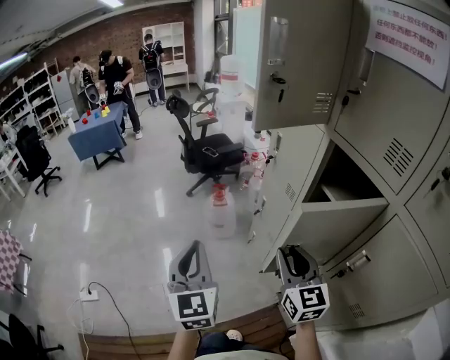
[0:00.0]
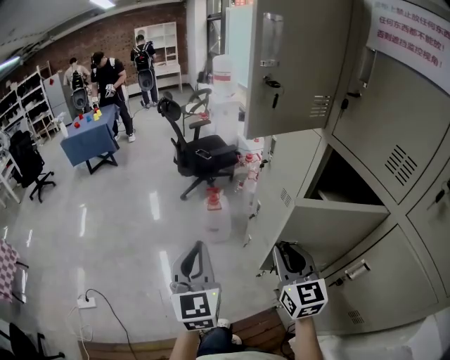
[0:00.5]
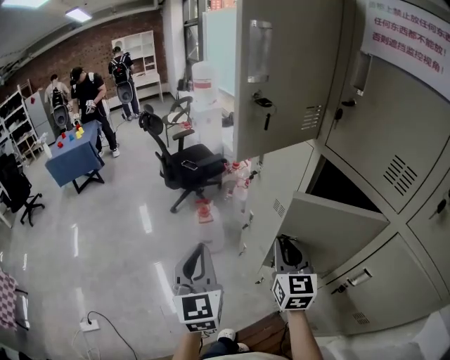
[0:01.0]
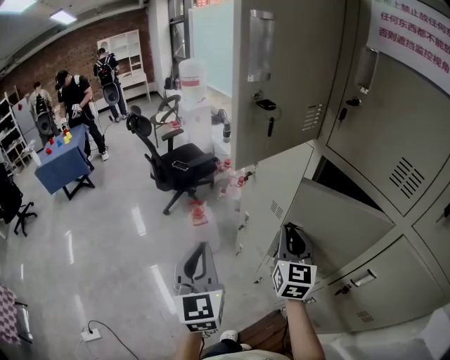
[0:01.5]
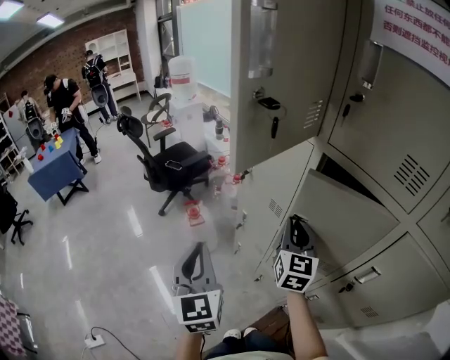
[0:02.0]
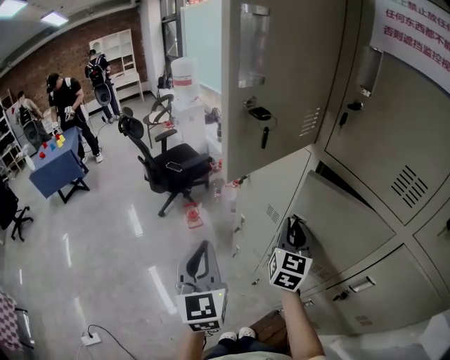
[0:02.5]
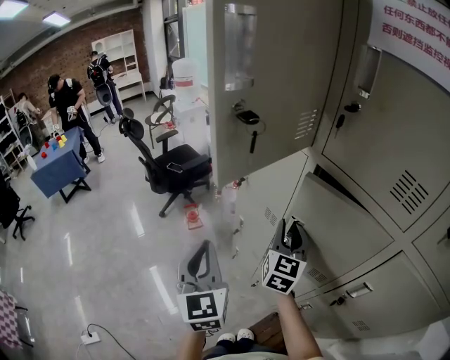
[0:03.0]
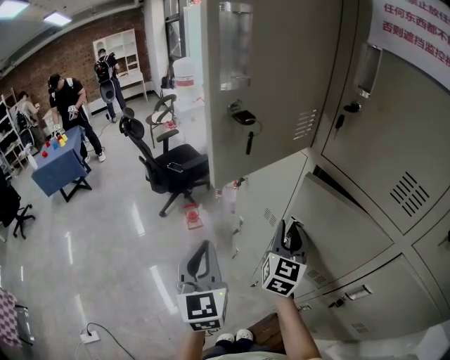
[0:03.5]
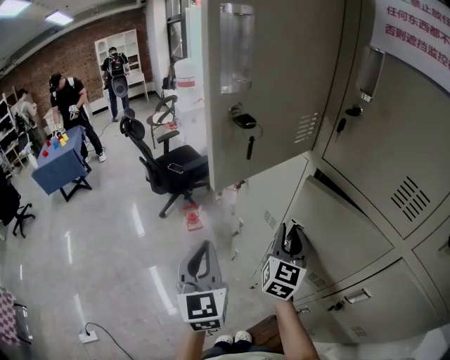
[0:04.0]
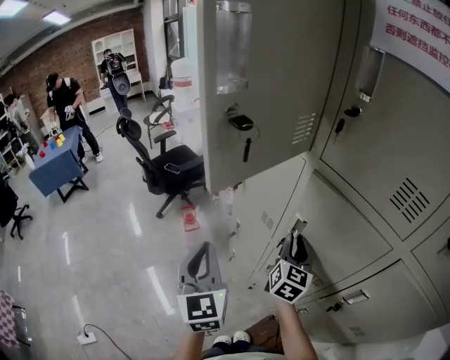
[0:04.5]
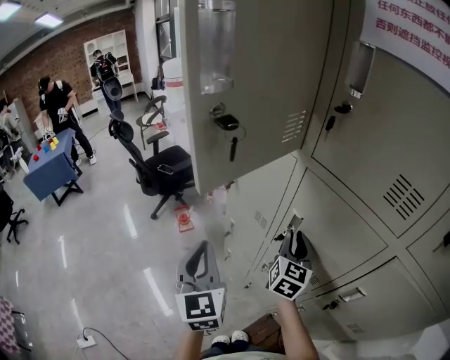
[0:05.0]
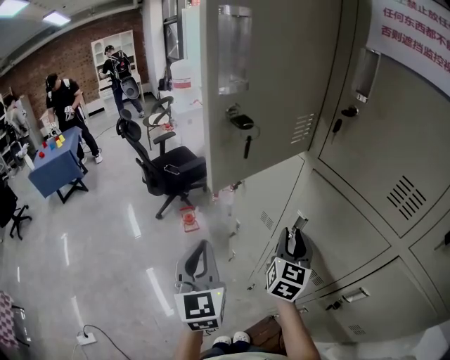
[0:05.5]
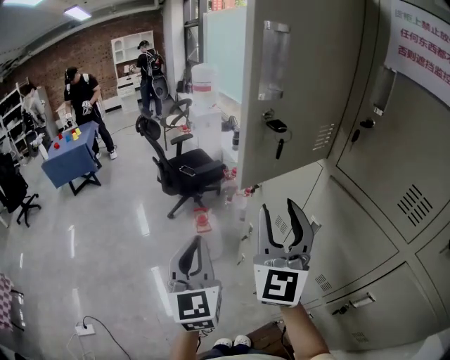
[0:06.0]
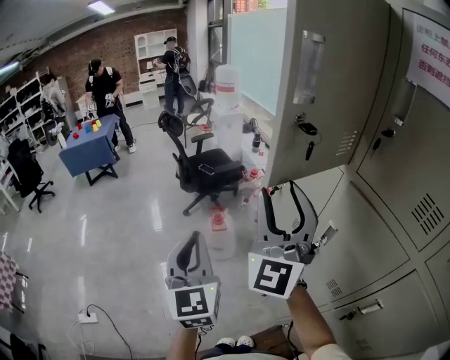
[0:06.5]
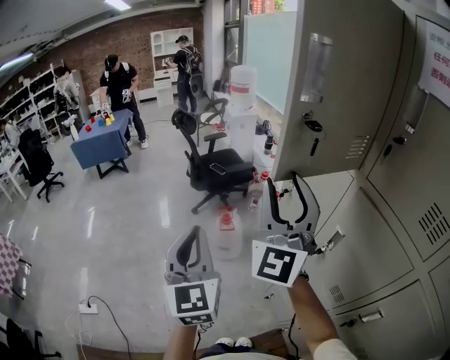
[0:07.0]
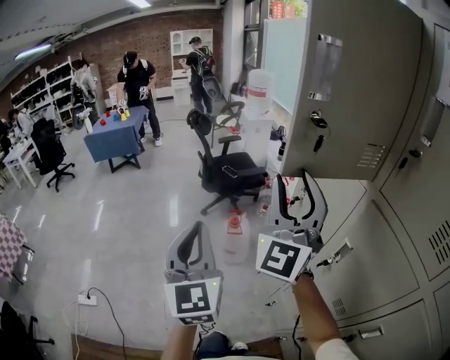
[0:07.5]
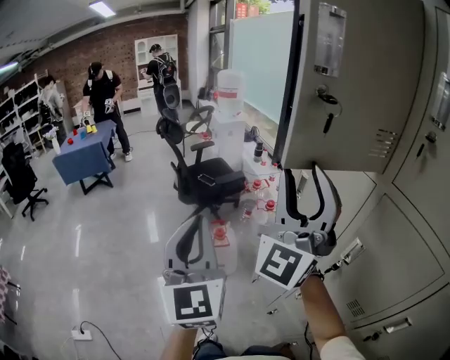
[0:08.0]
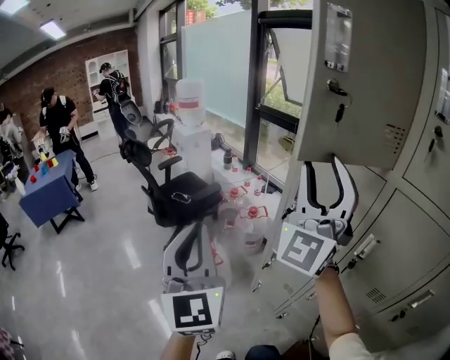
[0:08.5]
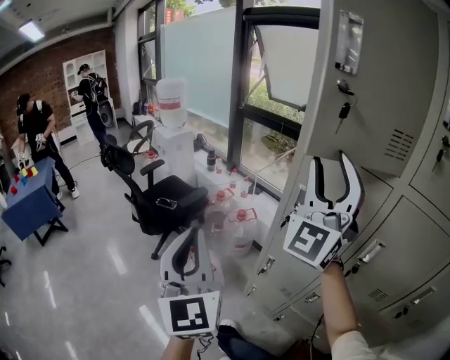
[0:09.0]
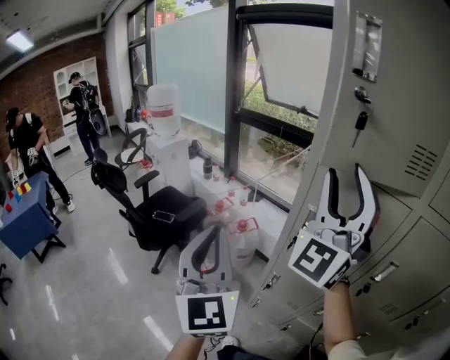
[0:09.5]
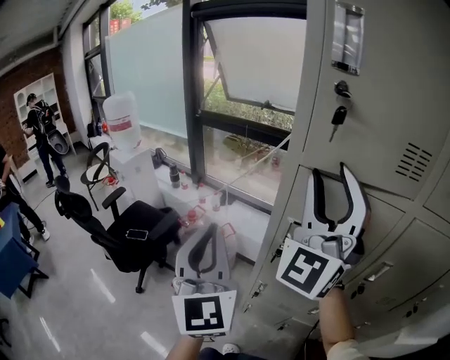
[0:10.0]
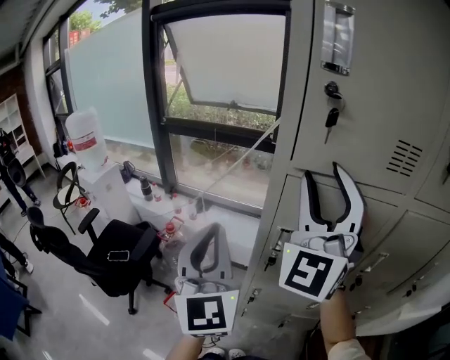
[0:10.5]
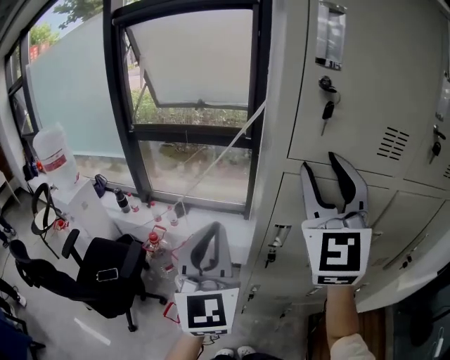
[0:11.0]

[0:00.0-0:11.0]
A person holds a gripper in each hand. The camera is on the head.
0.0 to 2.0 s: Both grippers move forward, about 20 cm. The right gripper rotates roughly 30 degrees.
2.0 to 3.5 s: The left gripper moves approximately 5 cm.
5.5 to 7.5 s: The left gripper ends up some 15 cm from where it was, and turns by approximately 20 degrees. The right gripper moves upward, some 25 cm, and rotates roughly 50 degrees.
7.5 to 9.0 s: The left gripper ends up approximately 25 cm from where it was, and turns by roughly 30 degrees. Meanwhile the right gripper moves approximately 15 cm, and rotates roughly 50 degrees.
9.0 to 11.0 s: The right gripper moves some 15 cm, and changes its angle by roughly 30 degrees; the left gripper shifts by about 30 cm, and rotates about 40 degrees.

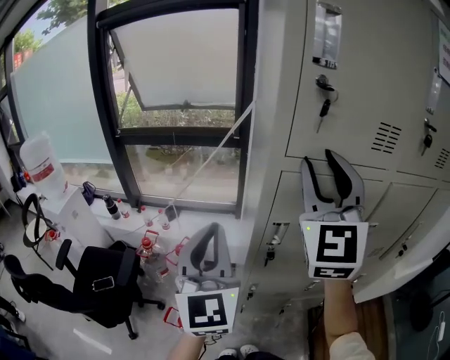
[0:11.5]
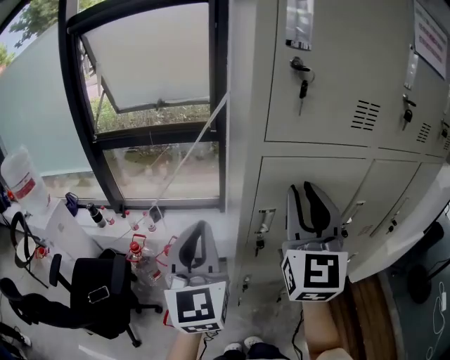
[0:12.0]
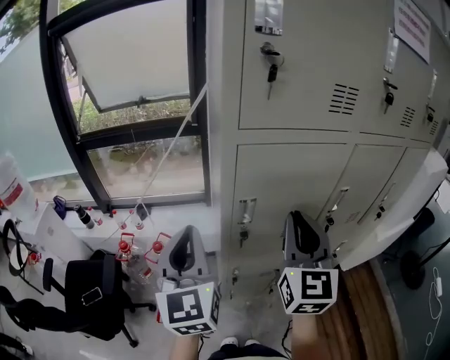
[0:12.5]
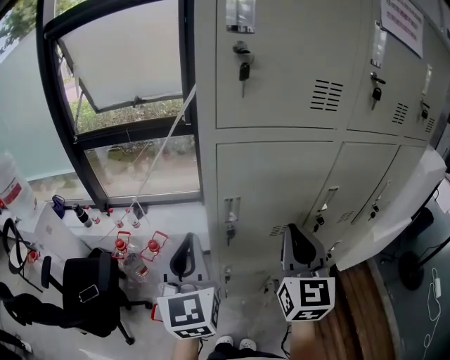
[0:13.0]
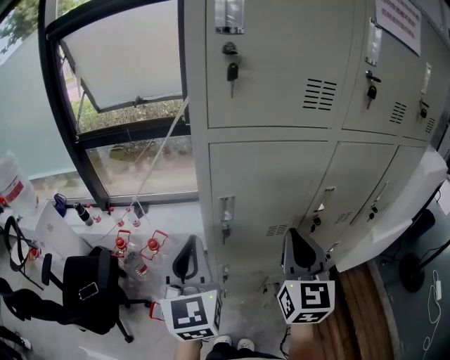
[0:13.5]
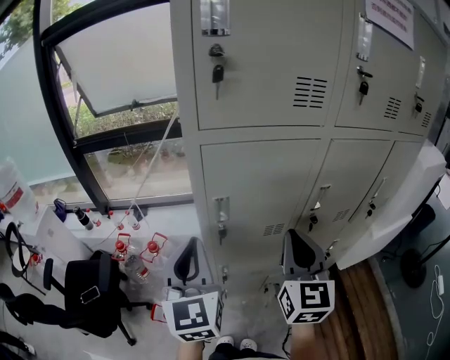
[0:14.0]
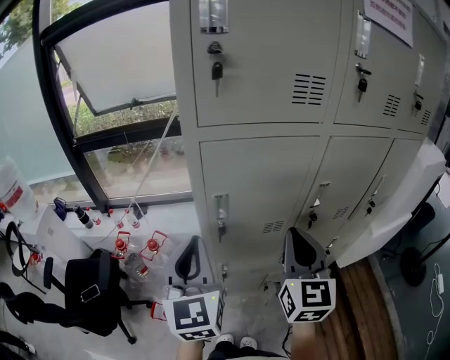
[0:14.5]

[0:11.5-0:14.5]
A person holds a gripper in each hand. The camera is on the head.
11.5 to 13.0 s: The left gripper goes approximately 5 cm downward, while the right gripper heads downward, to the right and backward, covering about 25 cm, rotates about 30 degrees, and closes.
13.0 to 14.5 s: The grippers make only small movements.

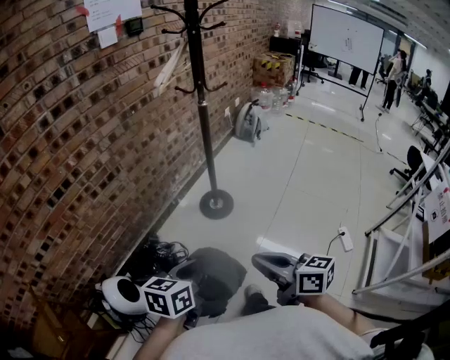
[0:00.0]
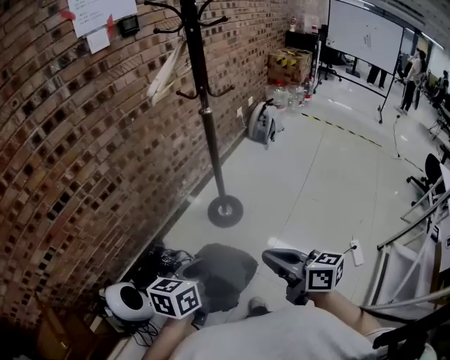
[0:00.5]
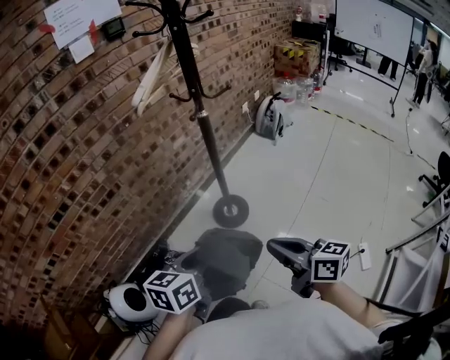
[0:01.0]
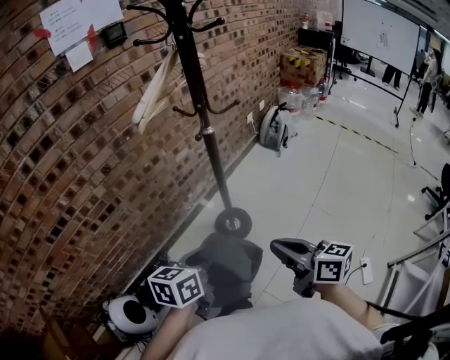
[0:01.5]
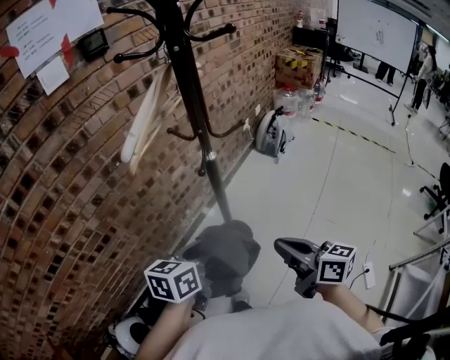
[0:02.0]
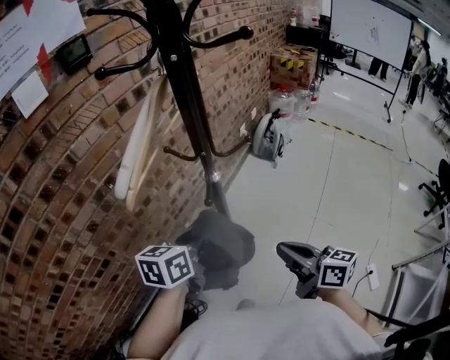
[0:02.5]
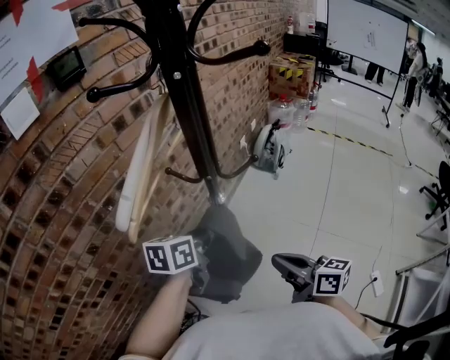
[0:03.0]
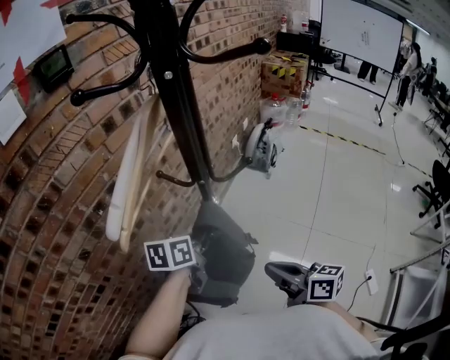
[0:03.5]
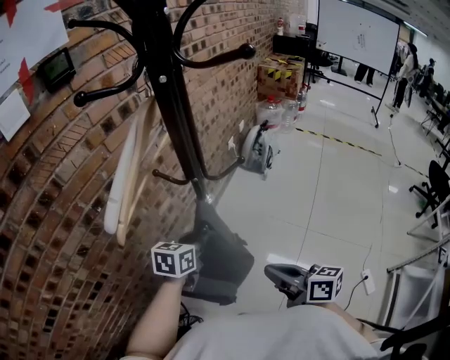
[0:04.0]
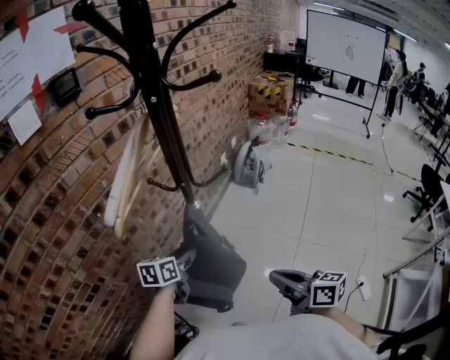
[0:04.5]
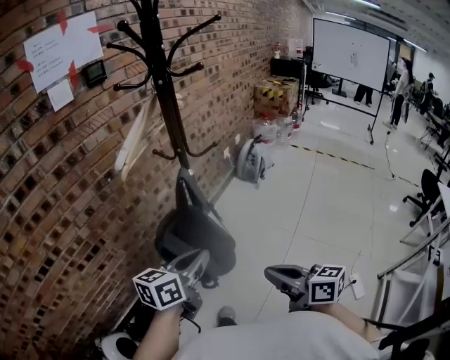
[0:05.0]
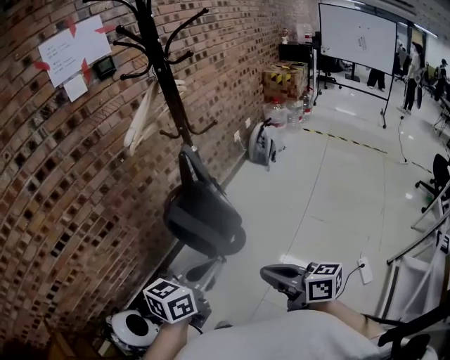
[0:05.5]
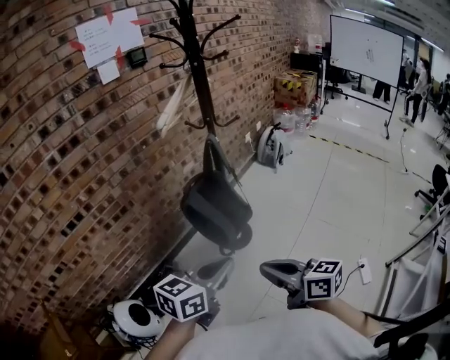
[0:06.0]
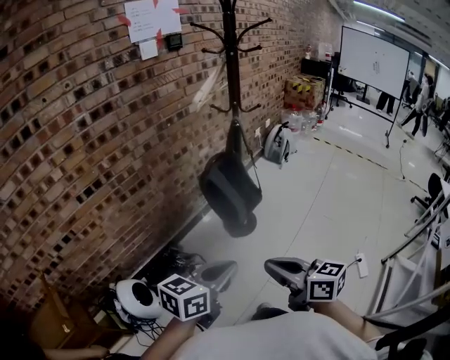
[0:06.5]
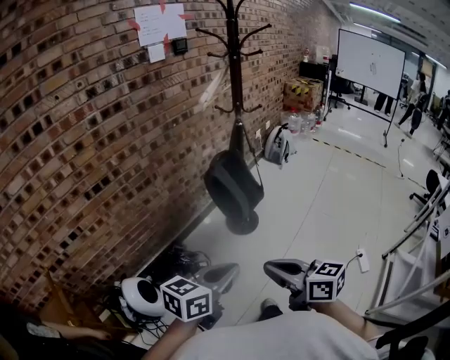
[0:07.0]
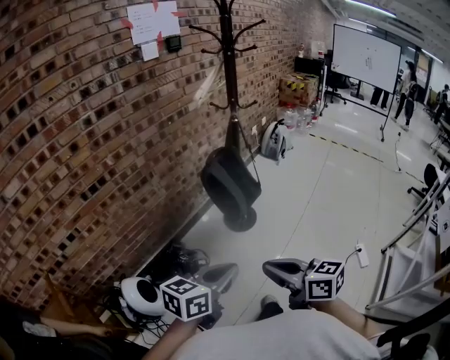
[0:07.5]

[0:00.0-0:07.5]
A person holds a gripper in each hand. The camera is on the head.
0.0 to 2.0 s: The pair of grippers is taken forward, roughly 40 cm.
2.0 to 4.0 s: The right gripper moves forward, about 10 cm; the left gripper goes approximately 20 cm forward.
4.0 to 5.5 s: The two grippers go approximately 35 cm backward. The left gripper opens and closes again.
5.5 to 7.5 s: Both grippers move backward and to the left, some 30 cm.

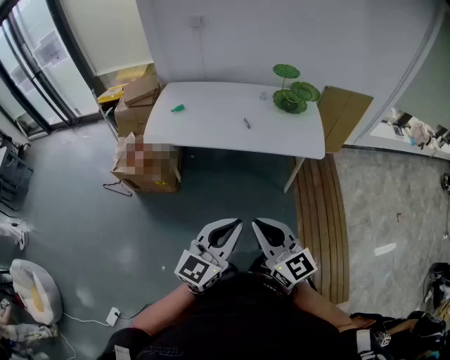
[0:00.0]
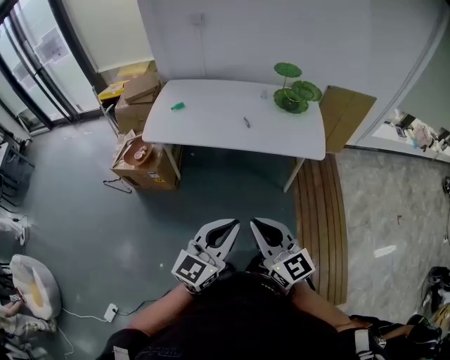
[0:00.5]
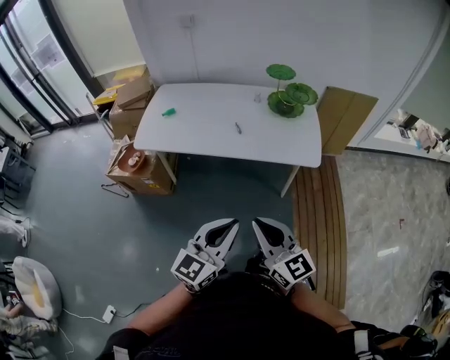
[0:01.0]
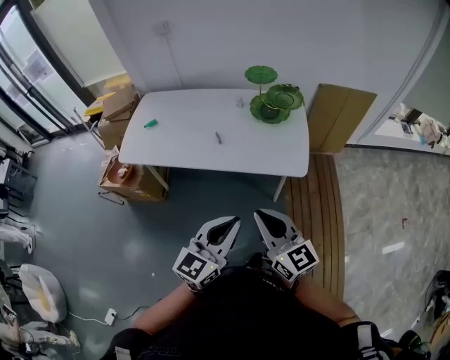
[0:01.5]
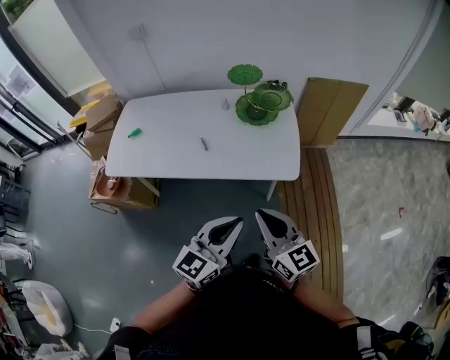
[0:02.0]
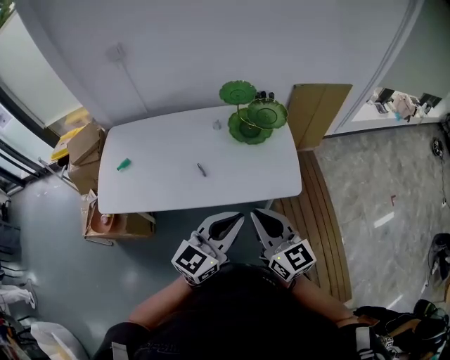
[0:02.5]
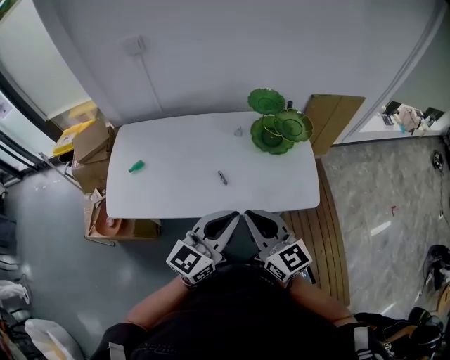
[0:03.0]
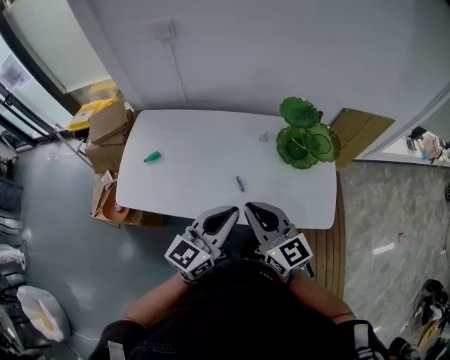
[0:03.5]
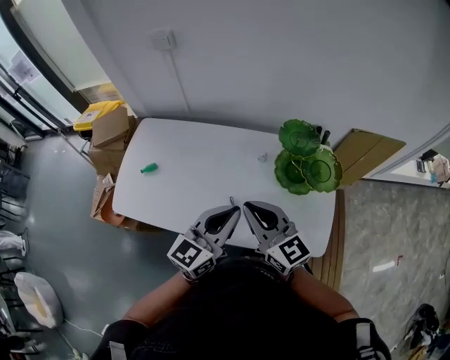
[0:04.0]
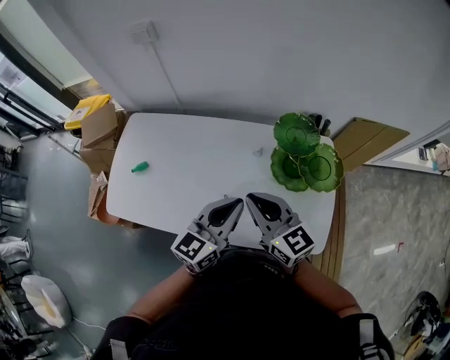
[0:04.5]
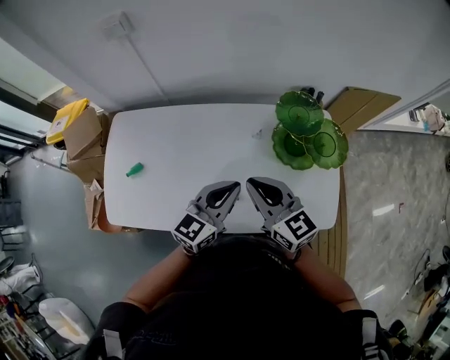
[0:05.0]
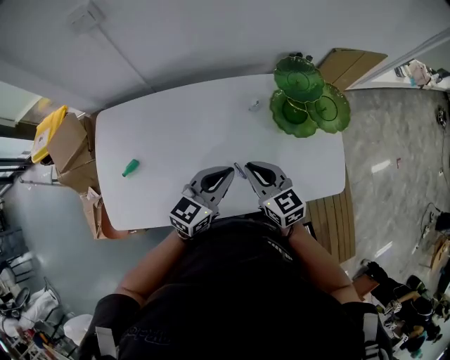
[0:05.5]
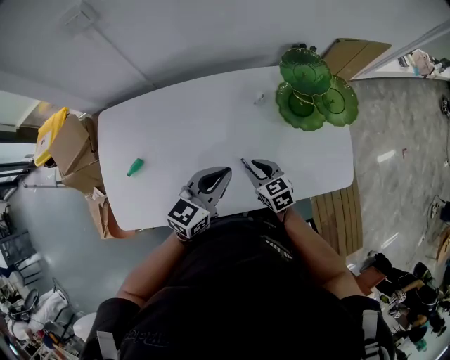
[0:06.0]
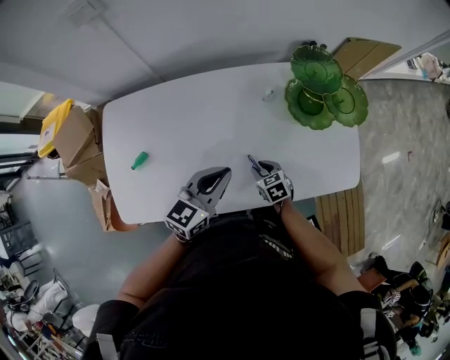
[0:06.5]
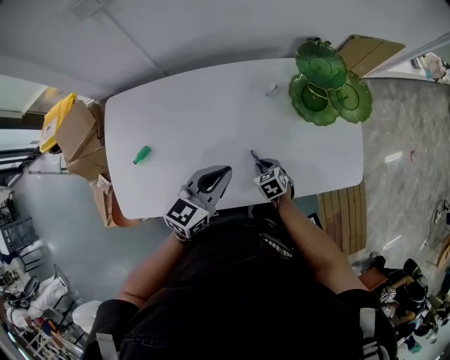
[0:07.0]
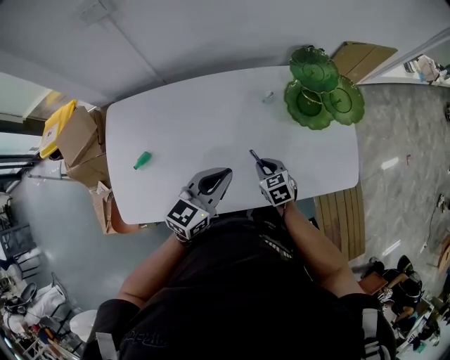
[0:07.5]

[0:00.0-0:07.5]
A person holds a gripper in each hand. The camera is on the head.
0.0 to 2.0 s: The right gripper moves forward and to the right, some 35 cm; the left gripper shifts roughly 35 cm to the right and forward.
2.0 to 4.0 s: The pair of grippers is taken forward and to the left, roughly 40 cm.
4.0 to 5.5 s: The left gripper goes roughly 20 cm downward, forward and to the left, and rotates roughly 30 degrees. The right gripper is displaced downward and forward by approximately 20 cm, and swivels some 30 degrees.
5.5 to 7.5 s: The left gripper shifts by some 5 cm, while the right gripper heads downward, covering roughly 15 cm, and turns by about 30 degrees.
